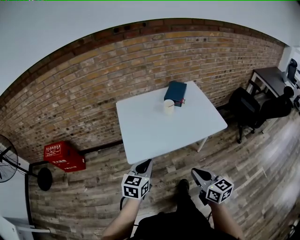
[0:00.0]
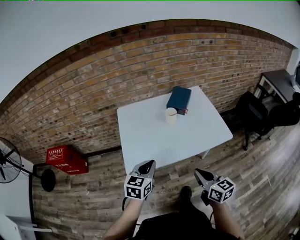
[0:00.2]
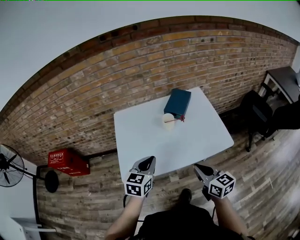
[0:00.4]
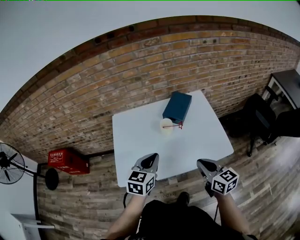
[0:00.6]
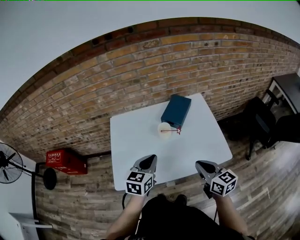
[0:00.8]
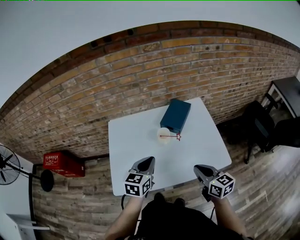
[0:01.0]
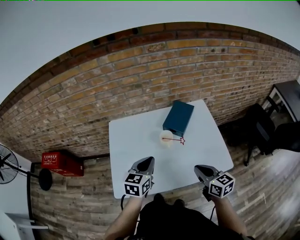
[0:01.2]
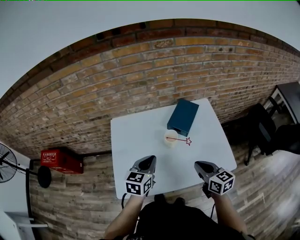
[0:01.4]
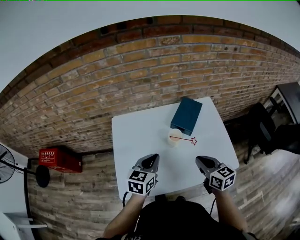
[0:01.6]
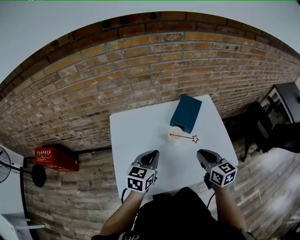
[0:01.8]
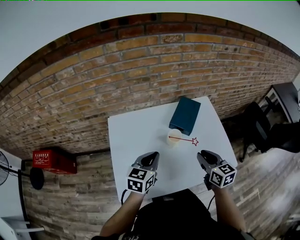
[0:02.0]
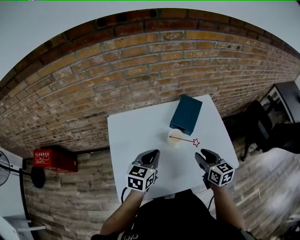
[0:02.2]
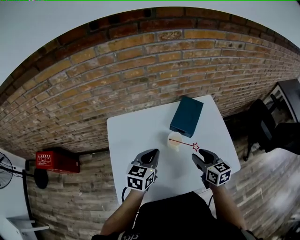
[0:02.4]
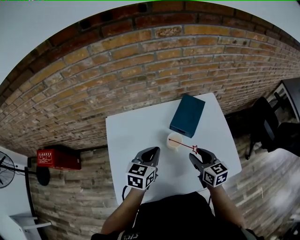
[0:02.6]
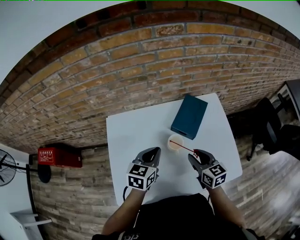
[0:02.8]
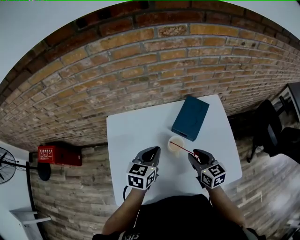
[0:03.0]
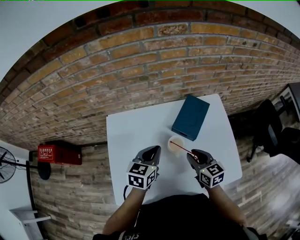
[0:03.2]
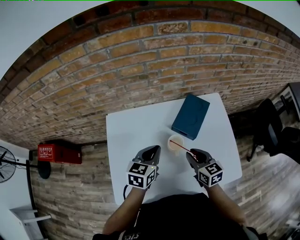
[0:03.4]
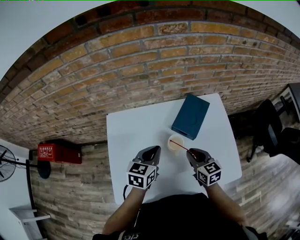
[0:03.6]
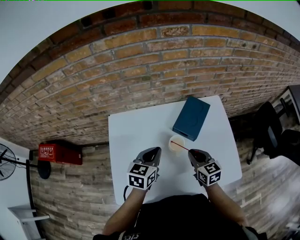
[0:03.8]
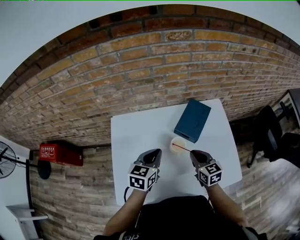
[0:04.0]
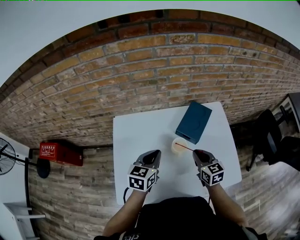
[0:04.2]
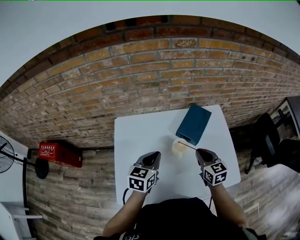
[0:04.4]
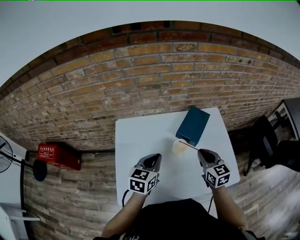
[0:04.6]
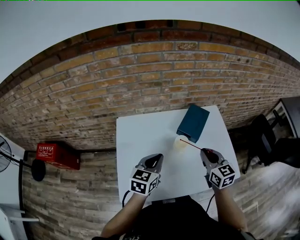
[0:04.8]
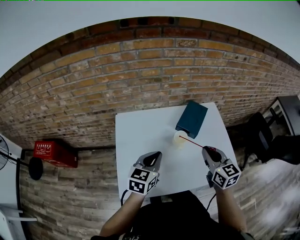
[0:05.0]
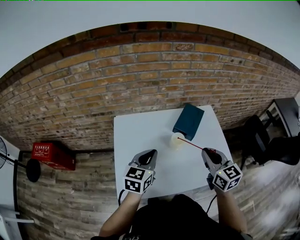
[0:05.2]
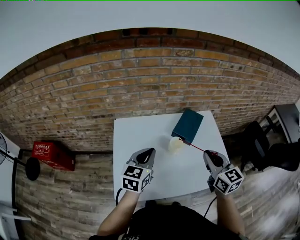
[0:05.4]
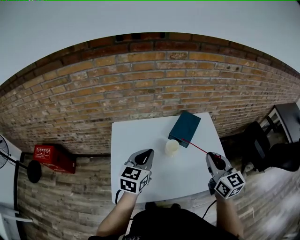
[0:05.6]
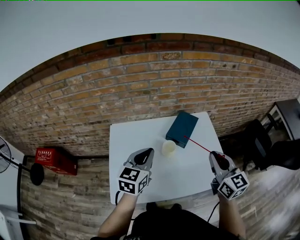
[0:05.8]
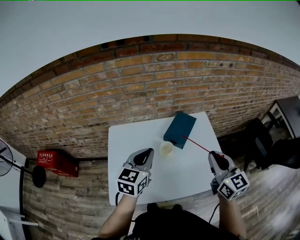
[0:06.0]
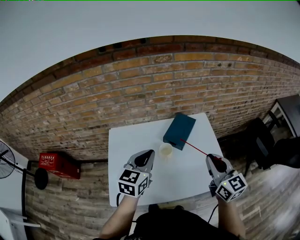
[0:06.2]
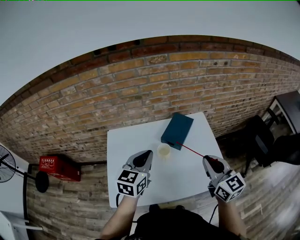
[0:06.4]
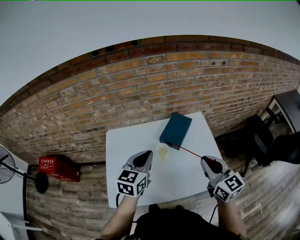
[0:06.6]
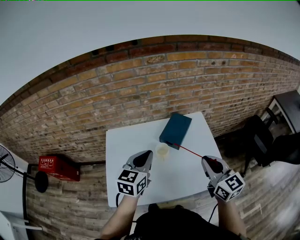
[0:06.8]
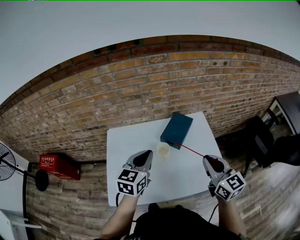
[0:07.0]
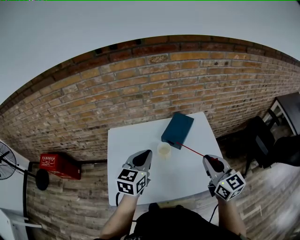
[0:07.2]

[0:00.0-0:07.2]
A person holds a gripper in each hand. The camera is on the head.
0.0 to 1.4 s: The two grippers go approximately 30 cm forward.
1.4 to 2.8 s: The right gripper travels forward and downward by roughly 15 cm, and opens. The left gripper heads forward, covering approximately 10 cm.
2.8 to 4.4 s: The right gripper closes up.
4.4 to 5.8 s: The left gripper heads upward, covering approximately 10 cm. The right gripper travels upward and backward by approximately 20 cm, and swivels roughly 20 degrees.
5.8 to 7.2 s: The grippers move only a little.

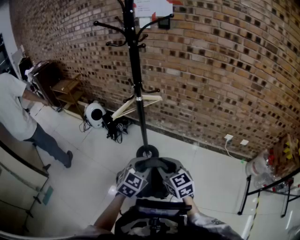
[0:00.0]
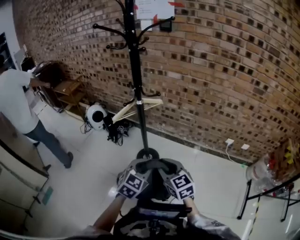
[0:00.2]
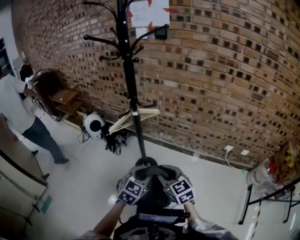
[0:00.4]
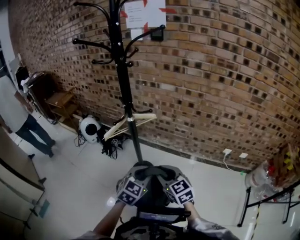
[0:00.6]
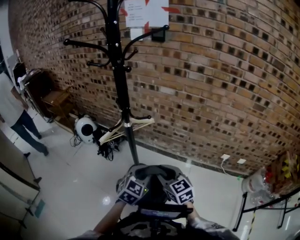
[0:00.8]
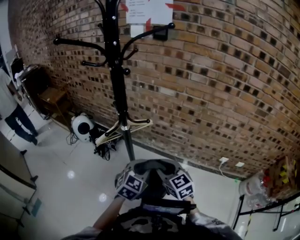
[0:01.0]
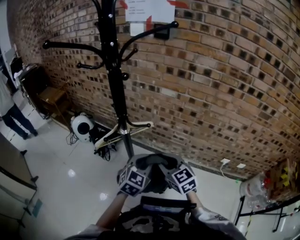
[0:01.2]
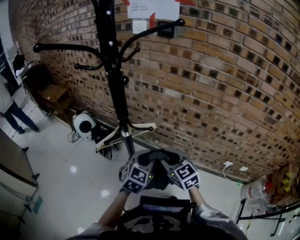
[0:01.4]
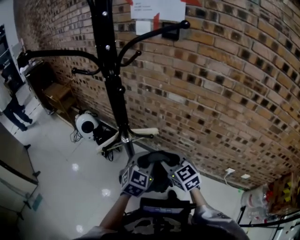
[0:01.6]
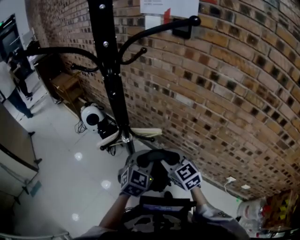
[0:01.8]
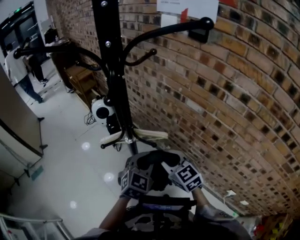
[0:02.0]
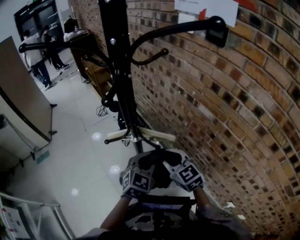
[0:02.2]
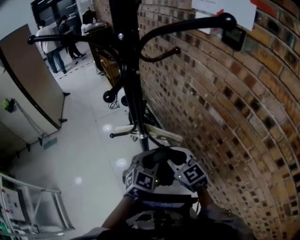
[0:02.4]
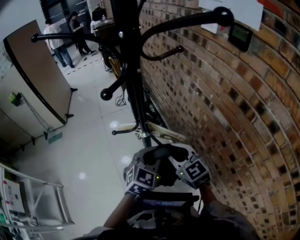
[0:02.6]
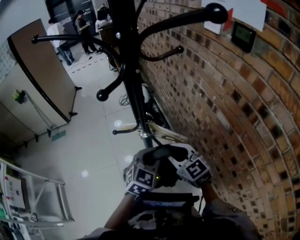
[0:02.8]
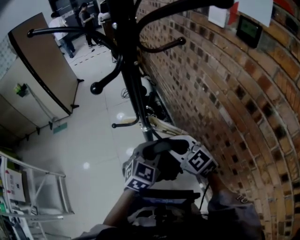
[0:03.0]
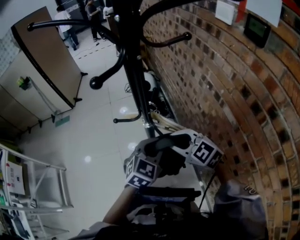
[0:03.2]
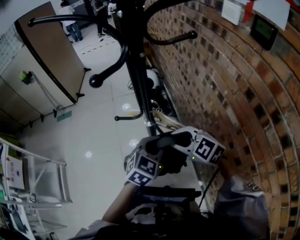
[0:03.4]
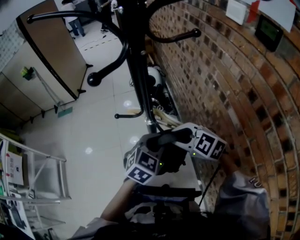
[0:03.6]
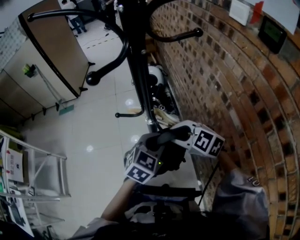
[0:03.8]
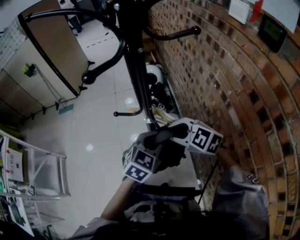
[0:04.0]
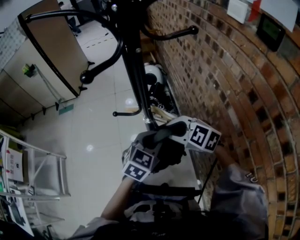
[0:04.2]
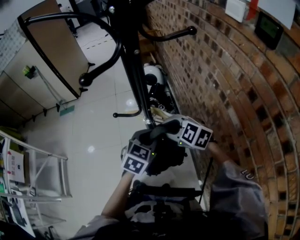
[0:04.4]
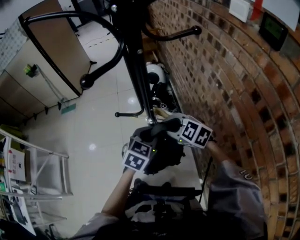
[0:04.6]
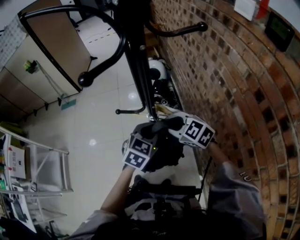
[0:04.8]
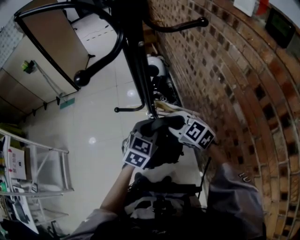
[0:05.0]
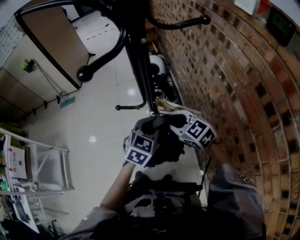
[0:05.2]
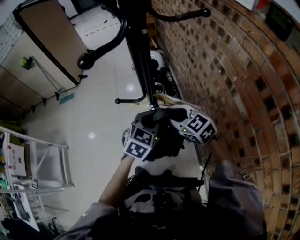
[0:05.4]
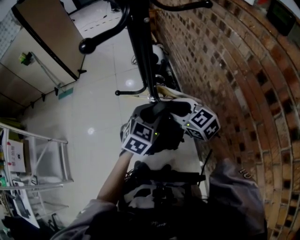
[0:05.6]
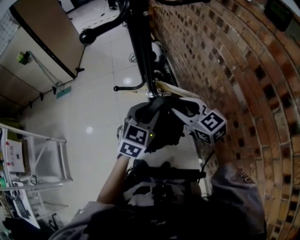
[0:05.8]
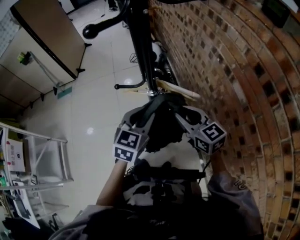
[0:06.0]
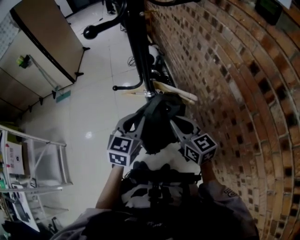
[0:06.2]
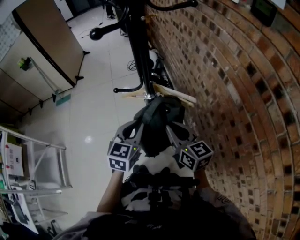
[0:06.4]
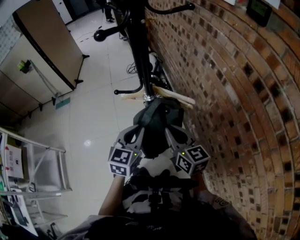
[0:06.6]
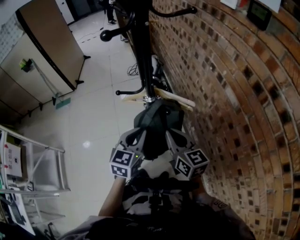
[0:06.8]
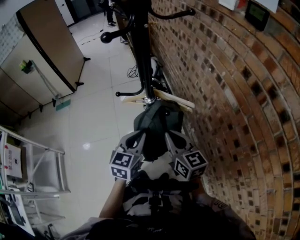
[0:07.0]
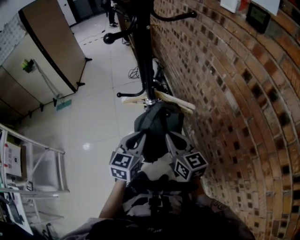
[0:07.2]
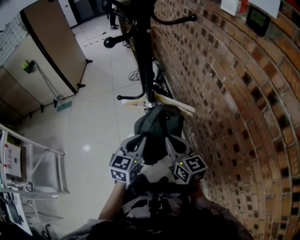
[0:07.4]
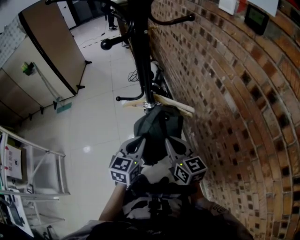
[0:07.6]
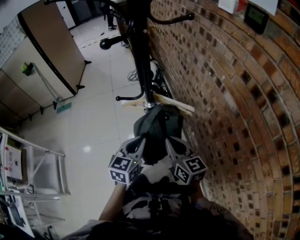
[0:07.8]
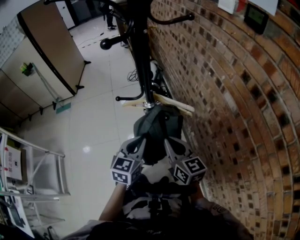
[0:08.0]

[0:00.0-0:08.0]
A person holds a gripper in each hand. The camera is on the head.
0.0 to 1.6 s: The grippers both shift forward by approximately 35 cm.
1.6 to 3.2 s: The right gripper moves roughly 10 cm, and changes its angle by roughly 70 degrees. Meanwhile the left gripper ends up about 10 cm from where it was, and changes its angle by roughly 40 degrees.
3.2 to 4.8 s: Both grippers move forward, some 5 cm.
4.8 to 6.4 s: The right gripper moves backward, about 10 cm, and turns by about 50 degrees, while the left gripper is displaced to the left and backward by approximately 10 cm.
6.4 to 8.0 s: There are only small adjustments of the grippers.

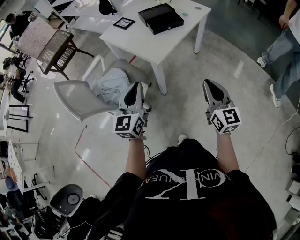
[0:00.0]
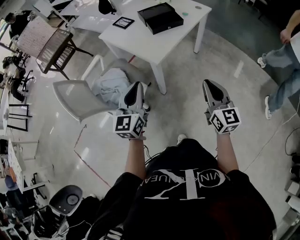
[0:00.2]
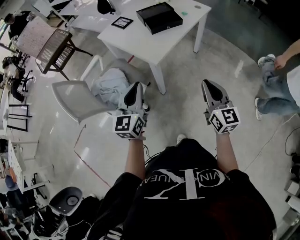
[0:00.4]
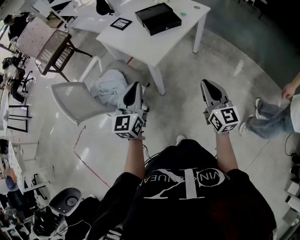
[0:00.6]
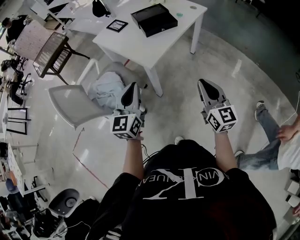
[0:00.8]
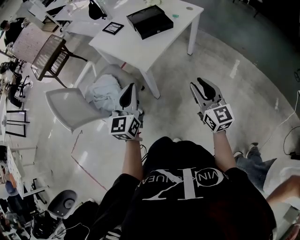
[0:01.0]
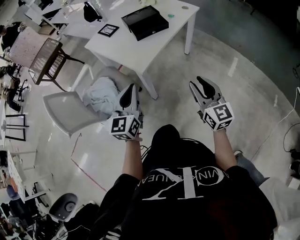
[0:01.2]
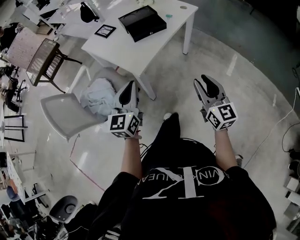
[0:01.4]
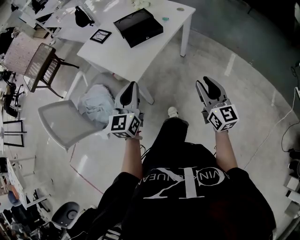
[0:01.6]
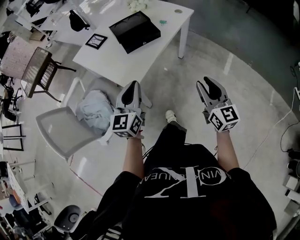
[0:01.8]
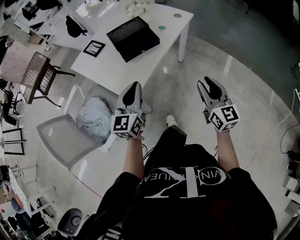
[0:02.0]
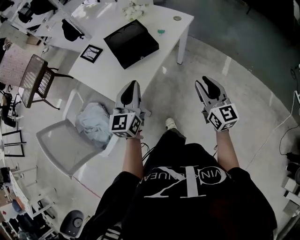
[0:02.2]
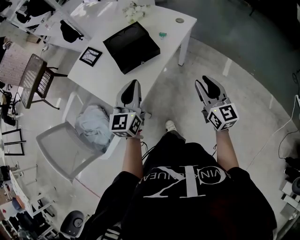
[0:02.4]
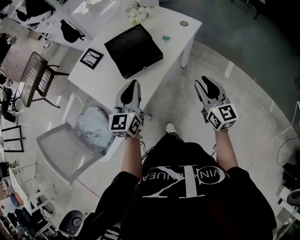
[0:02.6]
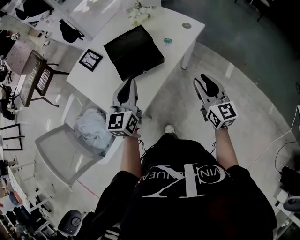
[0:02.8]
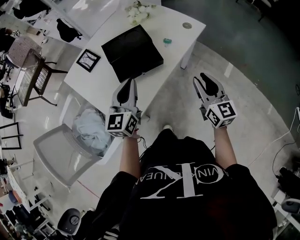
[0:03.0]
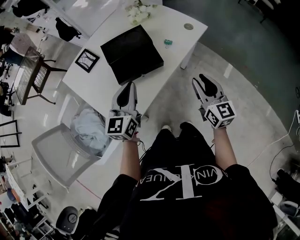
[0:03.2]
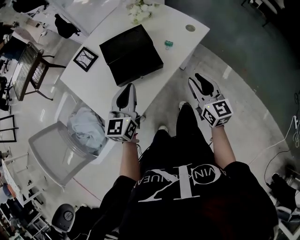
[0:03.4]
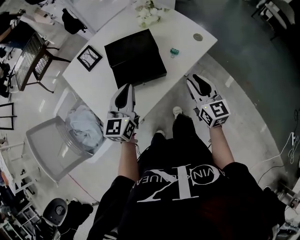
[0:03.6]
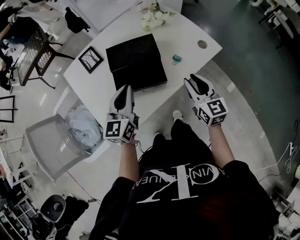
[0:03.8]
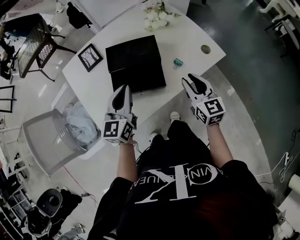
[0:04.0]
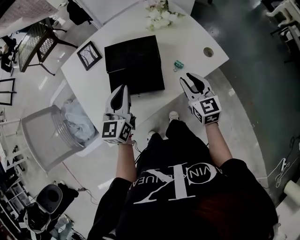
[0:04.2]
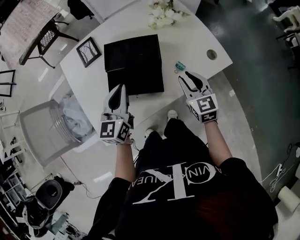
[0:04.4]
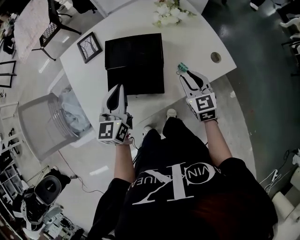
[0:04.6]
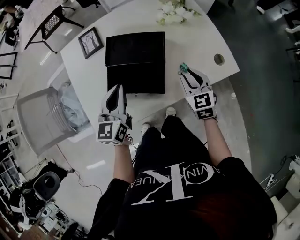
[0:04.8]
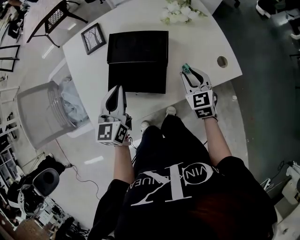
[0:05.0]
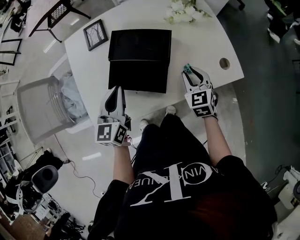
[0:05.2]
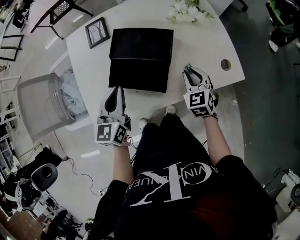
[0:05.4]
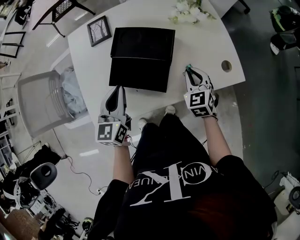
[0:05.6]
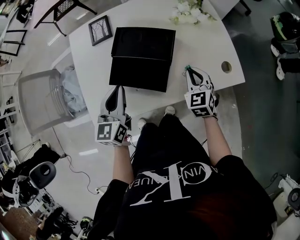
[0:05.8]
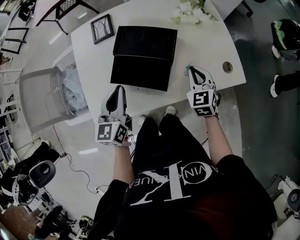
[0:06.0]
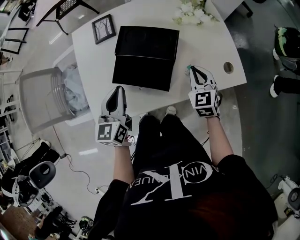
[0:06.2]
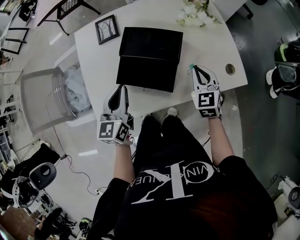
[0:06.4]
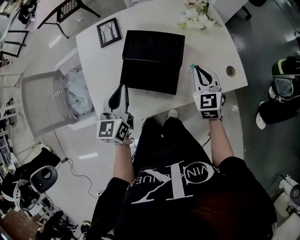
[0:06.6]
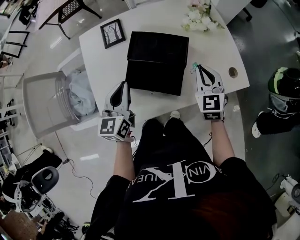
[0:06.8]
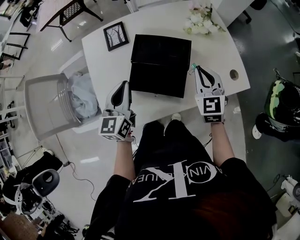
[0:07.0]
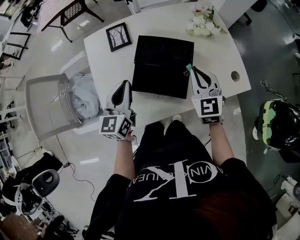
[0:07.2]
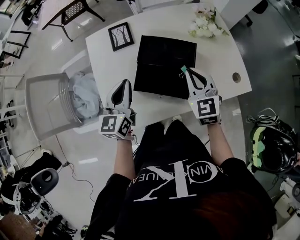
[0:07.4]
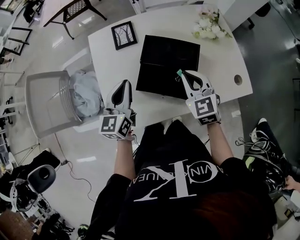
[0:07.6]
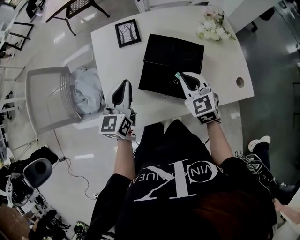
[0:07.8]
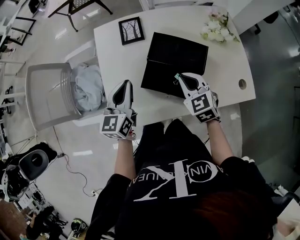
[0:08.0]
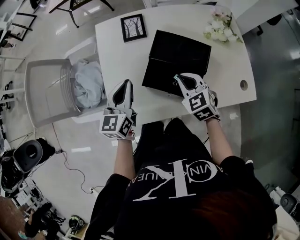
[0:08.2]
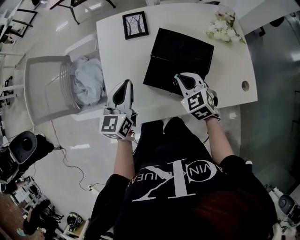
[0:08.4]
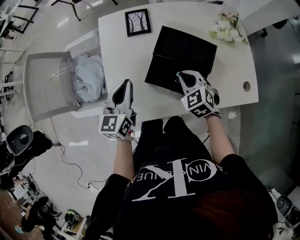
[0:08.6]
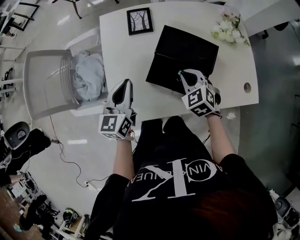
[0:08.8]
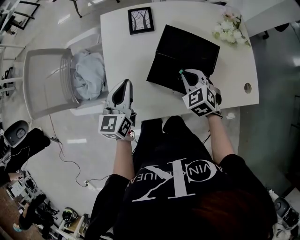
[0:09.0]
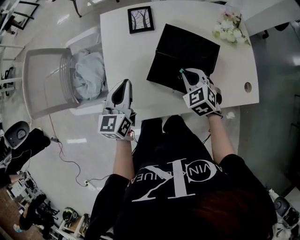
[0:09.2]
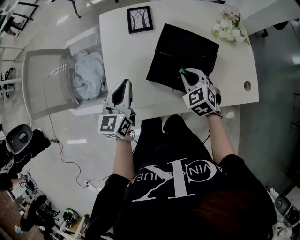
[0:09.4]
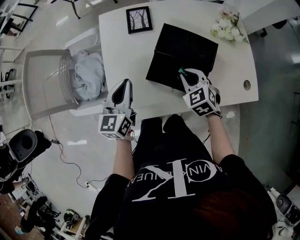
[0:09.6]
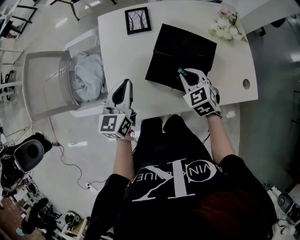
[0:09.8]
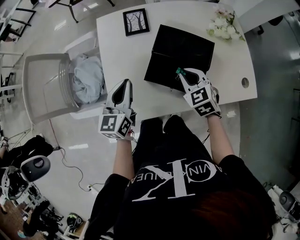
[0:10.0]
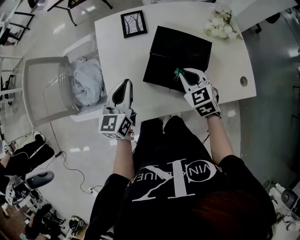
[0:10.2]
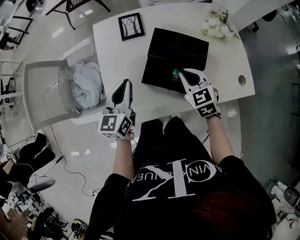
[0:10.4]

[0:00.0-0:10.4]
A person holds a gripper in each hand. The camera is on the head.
0.0 to 1.4 s: The two grippers go roughly 10 cm forward and to the right.
1.4 to 3.0 s: Both grippers travel together forward, roughly 35 cm.
3.0 to 4.4 s: The right gripper goes about 25 cm forward, and turns by about 30 degrees; the left gripper is displaced forward by about 10 cm, and swivels approximately 20 degrees.
4.4 to 6.0 s: The left gripper shifts by roughly 5 cm. Meanwhile the right gripper shifts about 5 cm forward, and turns by approximately 20 degrees.
6.0 to 7.4 s: The right gripper heads to the left and upward, covering some 15 cm. Meanwhile the left gripper moves to the left and forward, some 10 cm.
7.4 to 9.0 s: The right gripper goes roughly 15 cm downward and to the left, and swivels roughly 30 degrees; the left gripper moves to the left, about 5 cm.
9.0 to 10.4 s: The grippers stay close to where they were, moving slightly.
